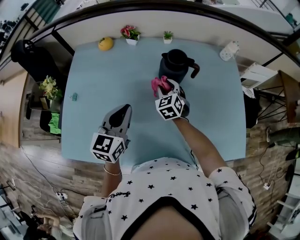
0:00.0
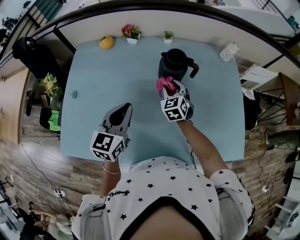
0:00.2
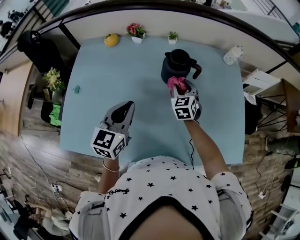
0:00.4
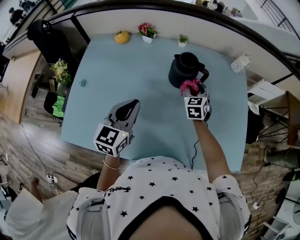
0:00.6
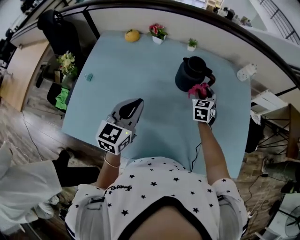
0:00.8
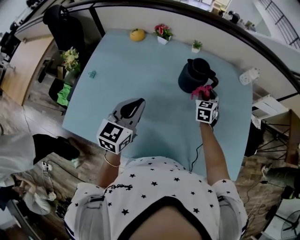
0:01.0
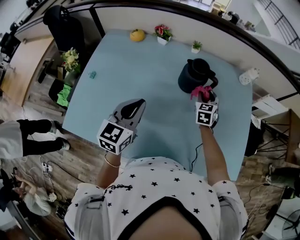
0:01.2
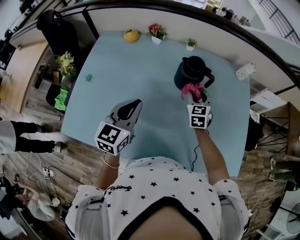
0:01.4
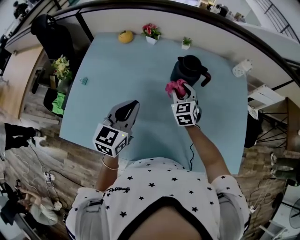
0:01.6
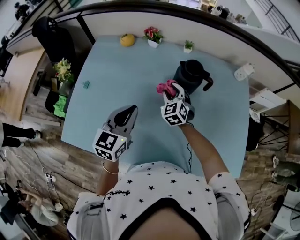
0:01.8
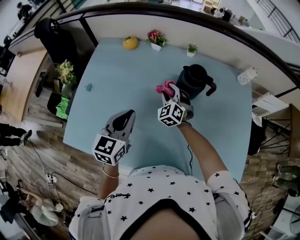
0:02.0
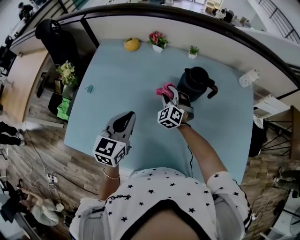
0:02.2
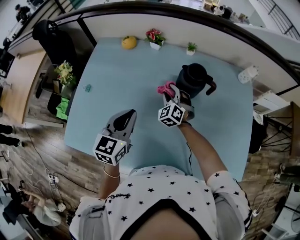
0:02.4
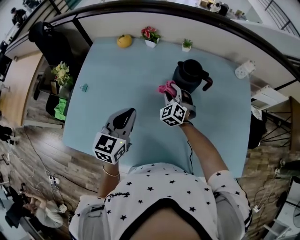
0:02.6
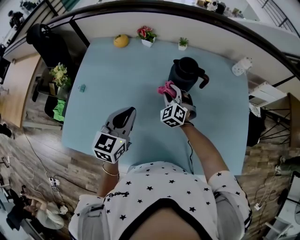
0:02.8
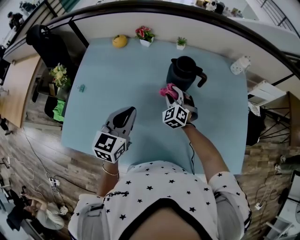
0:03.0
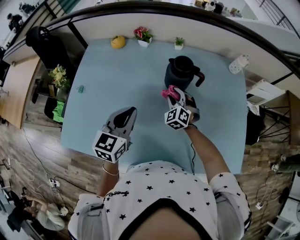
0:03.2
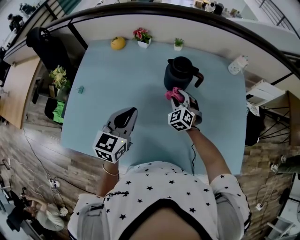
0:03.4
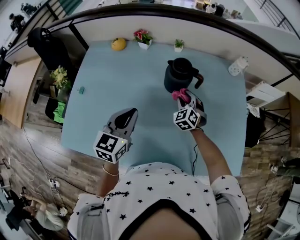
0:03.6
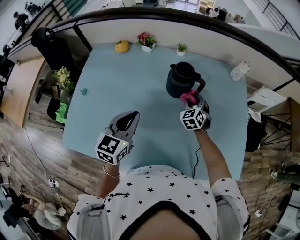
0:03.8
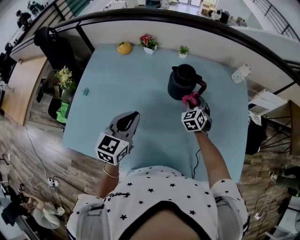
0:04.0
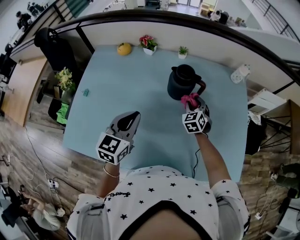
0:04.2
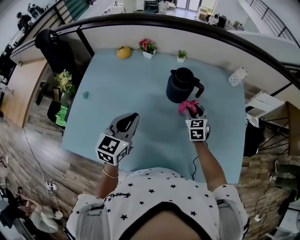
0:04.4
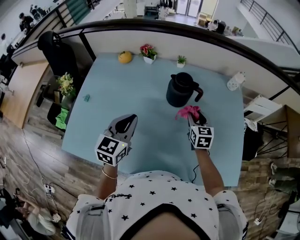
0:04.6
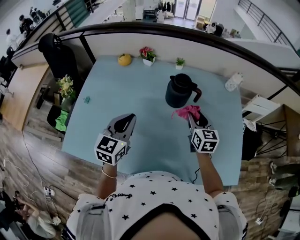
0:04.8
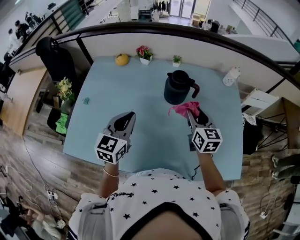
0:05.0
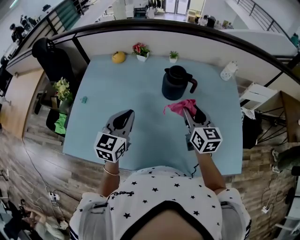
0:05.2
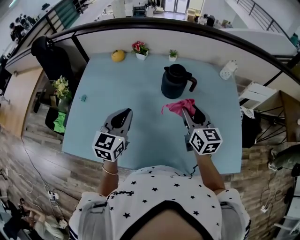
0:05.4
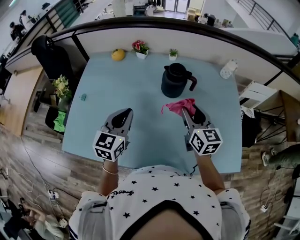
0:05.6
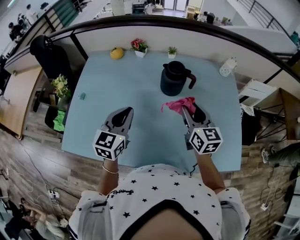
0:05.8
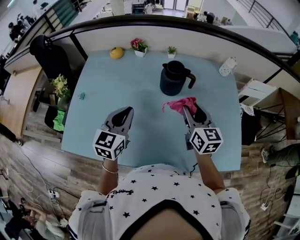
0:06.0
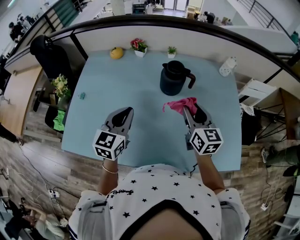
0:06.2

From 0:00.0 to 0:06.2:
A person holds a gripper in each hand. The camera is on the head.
From 0:00.0 to 0:01.6: The right gripper reaches about 15 cm to the right, then returns.
From 0:01.6 to 0:03.2: The right gripper goes roughly 5 cm downward, travels to the left and back again, roughly 10 cm each way, and swivels some 20 degrees.
From 0:03.2 to 0:04.6: The right gripper goes about 15 cm to the right and upward, and rotates around the line of its fingers by about 50 degrees, clockwise from behind.
From 0:04.6 to 0:06.2: The right gripper shifts some 15 cm upward and backward.

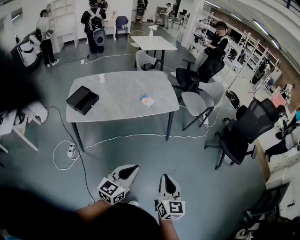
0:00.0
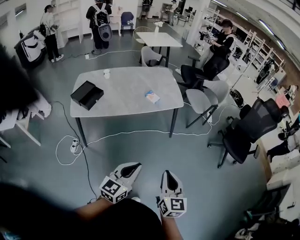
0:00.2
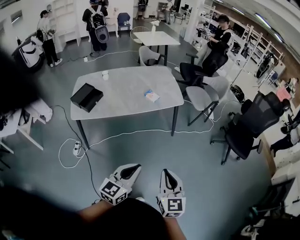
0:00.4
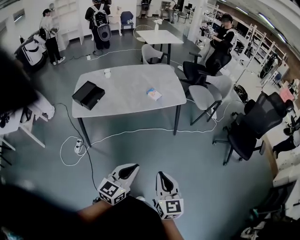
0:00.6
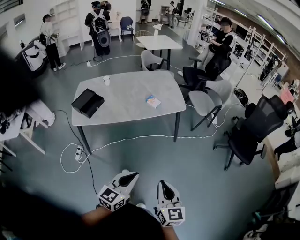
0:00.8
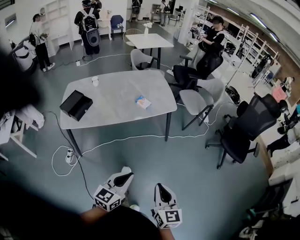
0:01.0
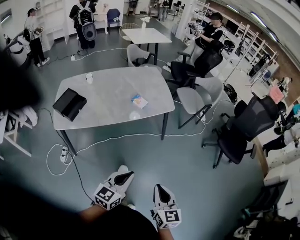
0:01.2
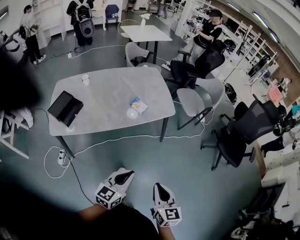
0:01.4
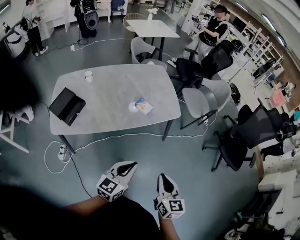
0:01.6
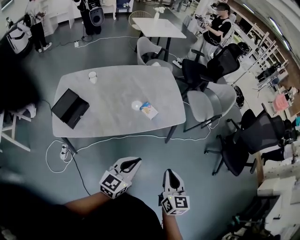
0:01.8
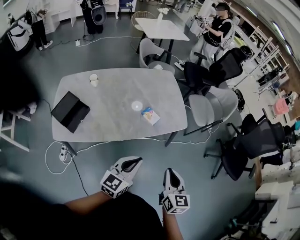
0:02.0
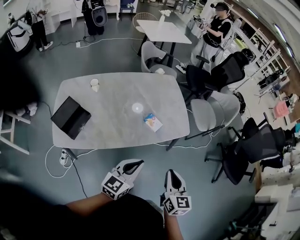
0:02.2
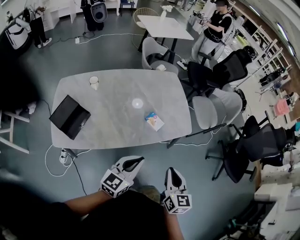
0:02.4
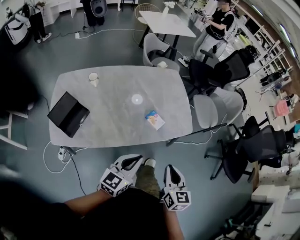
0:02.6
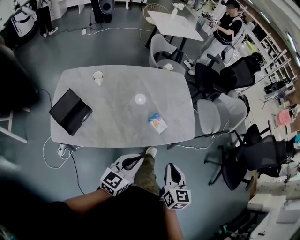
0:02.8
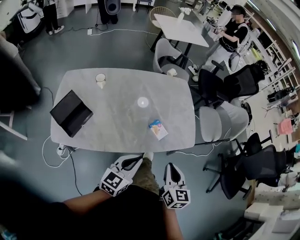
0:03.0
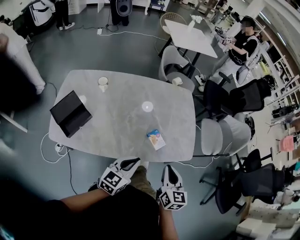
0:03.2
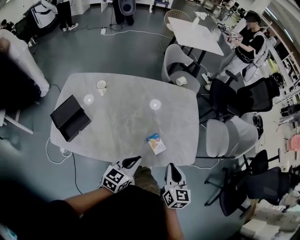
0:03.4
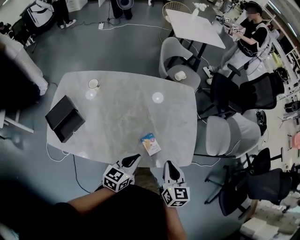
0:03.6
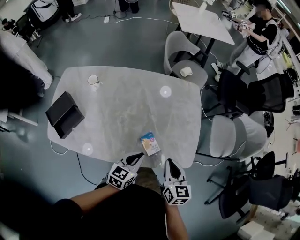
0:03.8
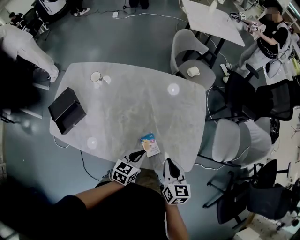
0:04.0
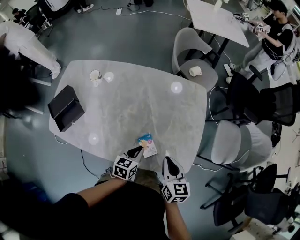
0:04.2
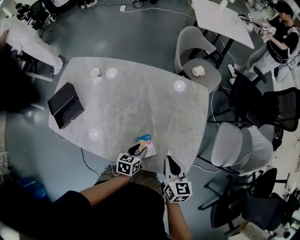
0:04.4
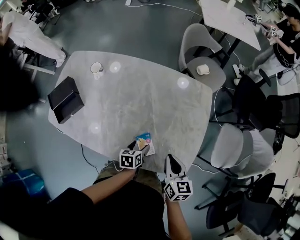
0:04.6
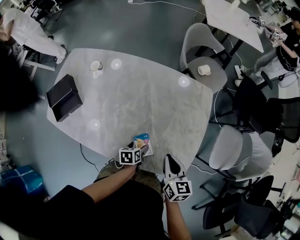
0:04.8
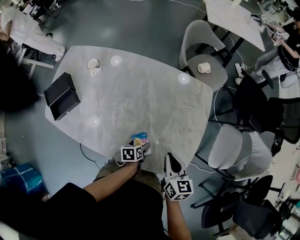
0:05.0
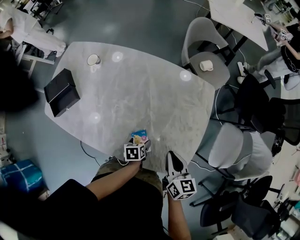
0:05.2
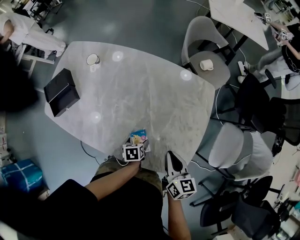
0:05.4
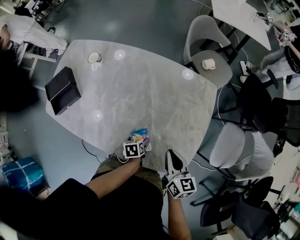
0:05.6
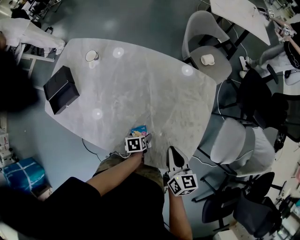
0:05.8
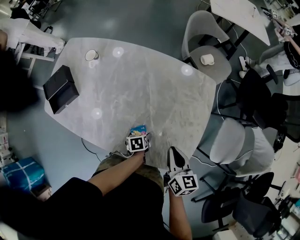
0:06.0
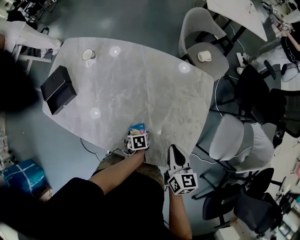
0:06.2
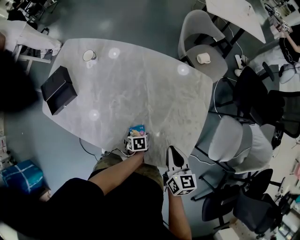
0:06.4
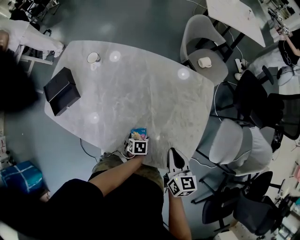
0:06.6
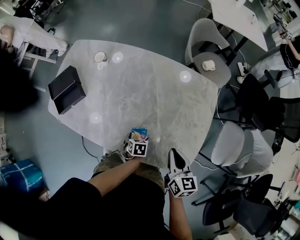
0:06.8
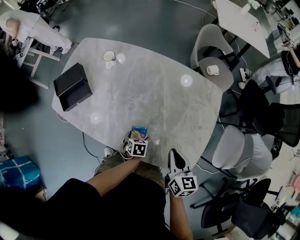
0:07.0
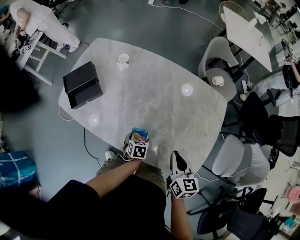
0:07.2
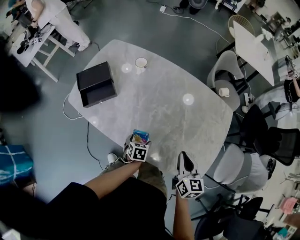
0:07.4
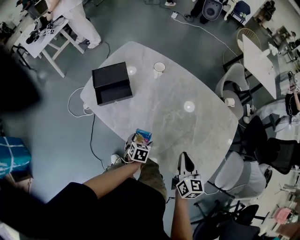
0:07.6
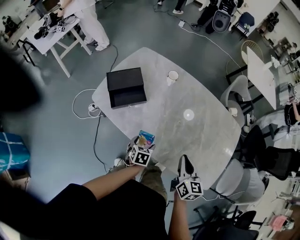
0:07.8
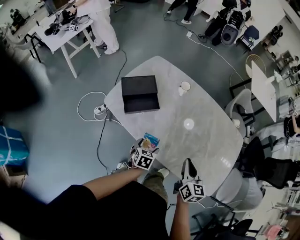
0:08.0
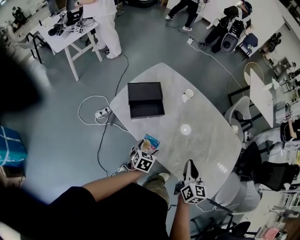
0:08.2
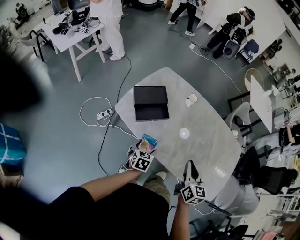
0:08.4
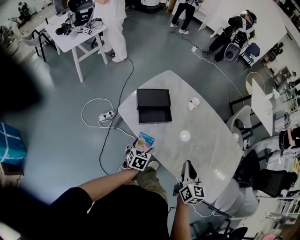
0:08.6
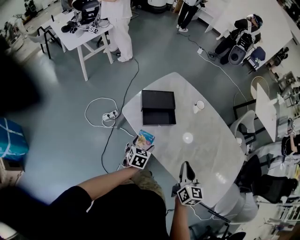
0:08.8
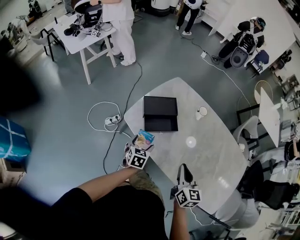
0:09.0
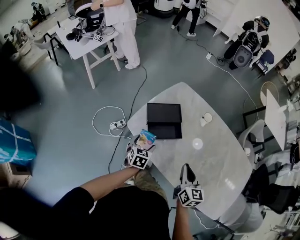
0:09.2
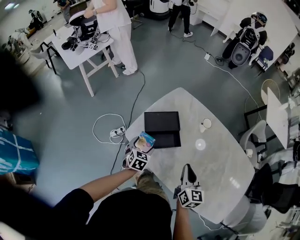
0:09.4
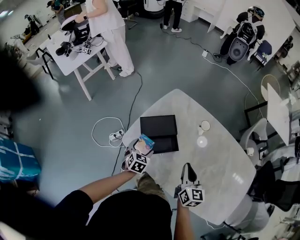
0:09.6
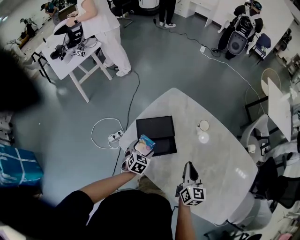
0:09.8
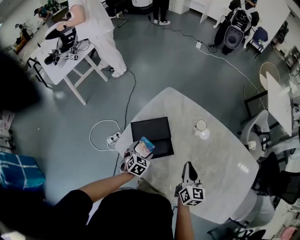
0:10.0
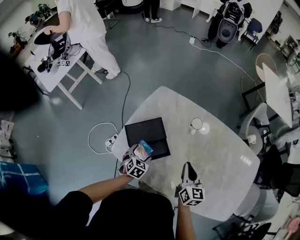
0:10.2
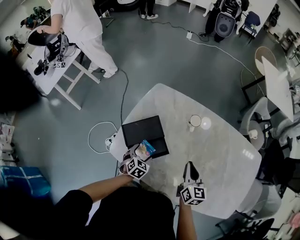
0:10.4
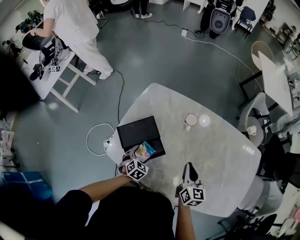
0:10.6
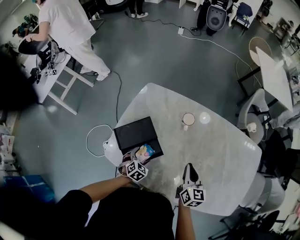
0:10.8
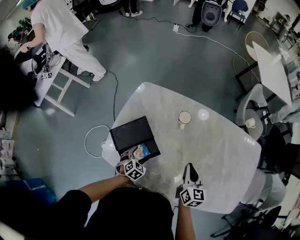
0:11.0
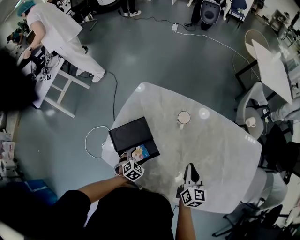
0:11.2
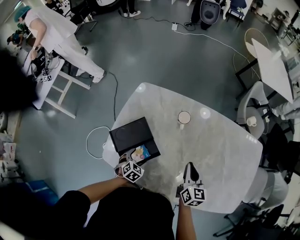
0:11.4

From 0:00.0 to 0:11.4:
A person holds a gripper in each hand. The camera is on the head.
From 0:00.0 to 0:01.4: The right gripper moves forward and downward, approximately 15 cm. Meanwhile the left gripper heads forward, covering approximately 20 cm.
From 0:01.4 to 0:02.8: The grippers both shift forward and to the left by approximately 35 cm.
From 0:02.8 to 0:04.2: The left gripper moves roughly 35 cm, and angles its fingers downward, by about 30 degrees. Meanwhile the right gripper ends up approximately 35 cm from where it was, and swivels some 30 degrees.
From 0:04.2 to 0:05.6: The left gripper shifts approximately 15 cm downward, rotates about 40 degrees, and opens up. Meanwhile the right gripper moves forward, approximately 5 cm.
From 0:05.6 to 0:07.2: The right gripper moves some 10 cm, while the left gripper ends up approximately 10 cm from where it was.
From 0:07.2 to 0:08.6: The two grippers travel together, to the left, some 40 cm. The left gripper turns by roughly 20 degrees.
From 0:08.6 to 0:10.0: The grippers both shift forward by some 25 cm. The left gripper turns by some 20 degrees.
From 0:10.0 to 0:11.4: The left gripper goes some 10 cm downward and to the right, and swivels approximately 20 degrees; the right gripper heads to the right and downward, covering approximately 10 cm.

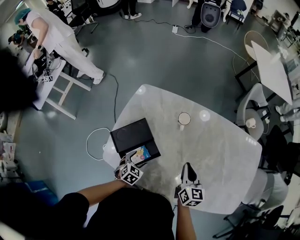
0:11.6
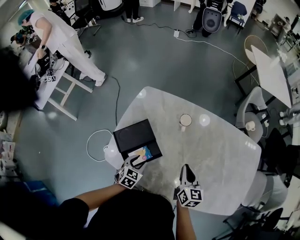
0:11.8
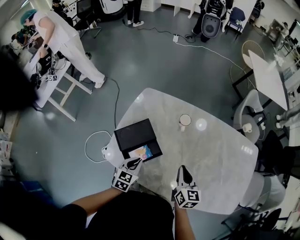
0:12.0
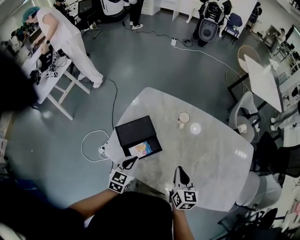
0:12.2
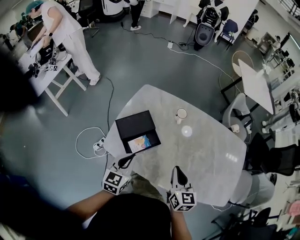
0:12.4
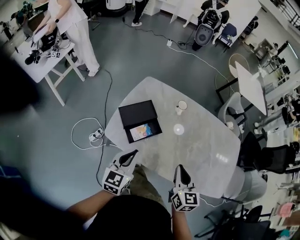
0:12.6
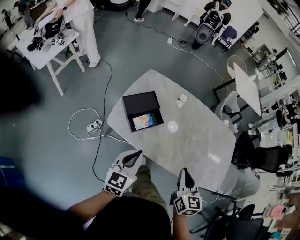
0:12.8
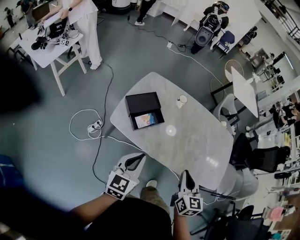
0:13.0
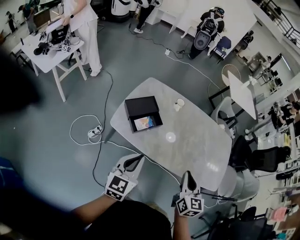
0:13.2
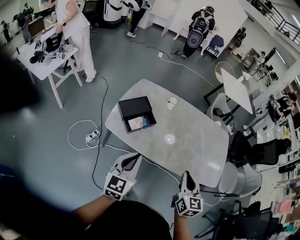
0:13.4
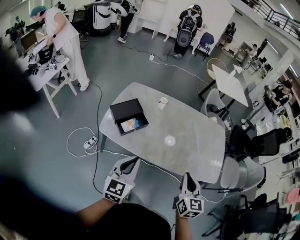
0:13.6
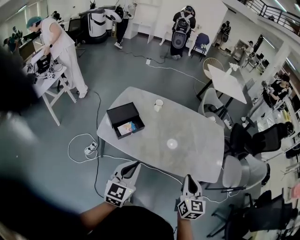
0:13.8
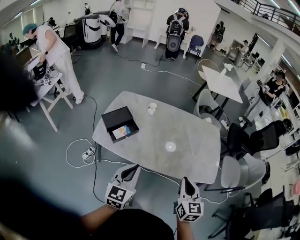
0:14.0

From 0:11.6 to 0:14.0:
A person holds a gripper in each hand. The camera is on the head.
From 0:11.6 to 0:12.8: The right gripper heads backward and upward, covering some 35 cm. The left gripper moves upward and backward, some 40 cm, points its fingers about 50 degrees further upward, and closes.
From 0:12.8 to 0:14.0: The grippers both shift to the right and backward by about 25 cm.

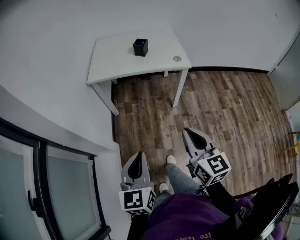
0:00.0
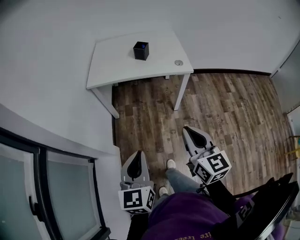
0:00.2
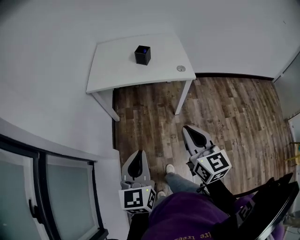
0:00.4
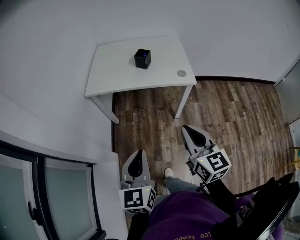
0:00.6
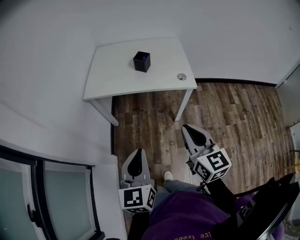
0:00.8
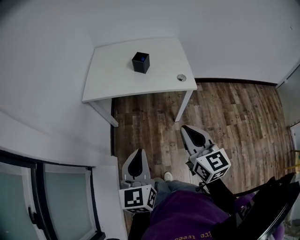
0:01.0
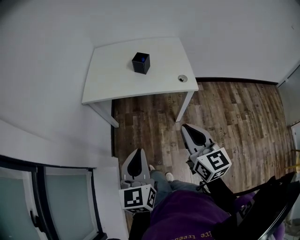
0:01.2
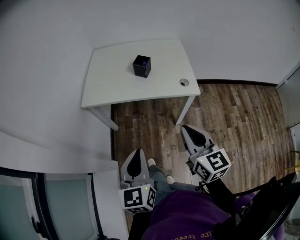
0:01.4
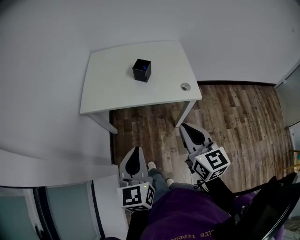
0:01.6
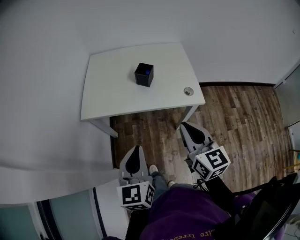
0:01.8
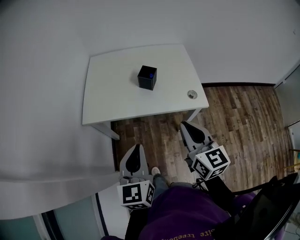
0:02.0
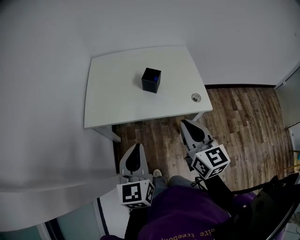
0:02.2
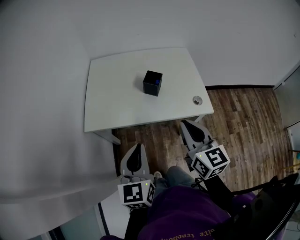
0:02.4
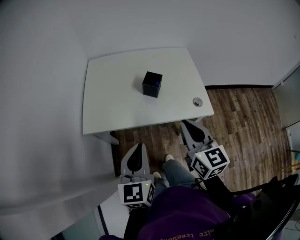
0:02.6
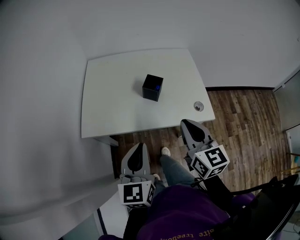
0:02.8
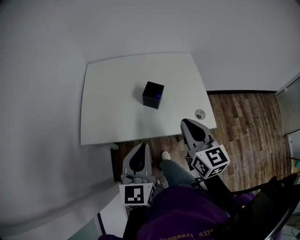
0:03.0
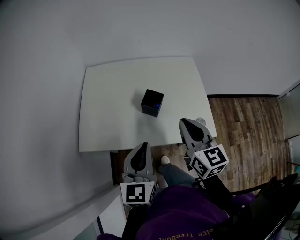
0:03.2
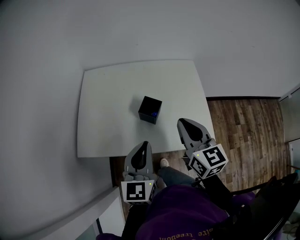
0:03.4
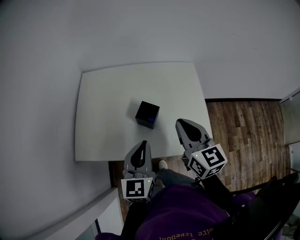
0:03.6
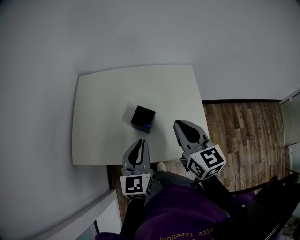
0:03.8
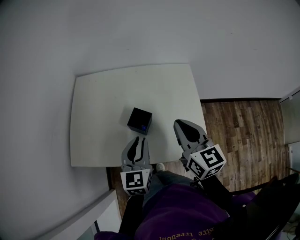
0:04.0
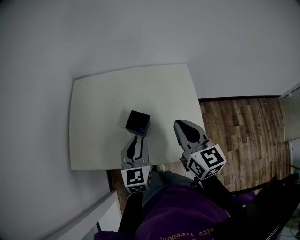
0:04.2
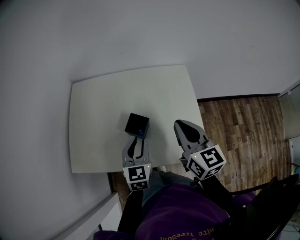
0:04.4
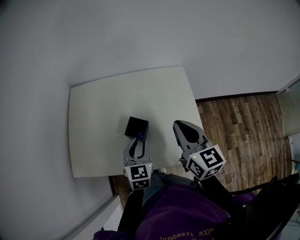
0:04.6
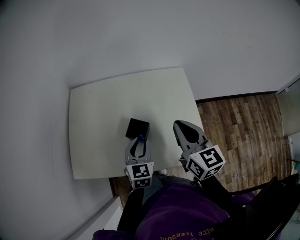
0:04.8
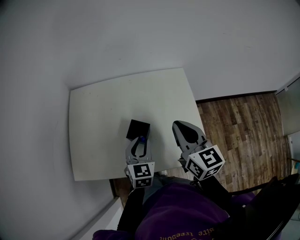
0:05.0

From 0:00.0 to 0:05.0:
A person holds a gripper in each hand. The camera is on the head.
From 0:00.0 to 0:01.6: The two grippers go about 30 cm forward.
From 0:01.6 to 0:03.4: The grippers both shift forward by approximately 30 cm.
From 0:03.4 to 0:05.0: The left gripper heads forward, downward and to the right, covering roughly 20 cm, changes its angle by roughly 20 degrees, and opens its fingers, while the right gripper heads forward and to the right, covering some 10 cm.
